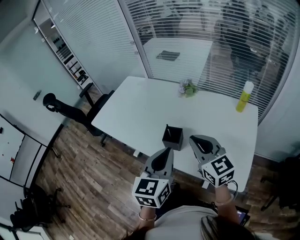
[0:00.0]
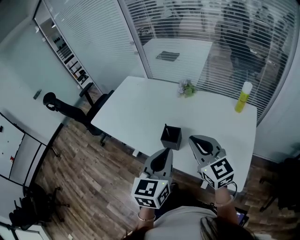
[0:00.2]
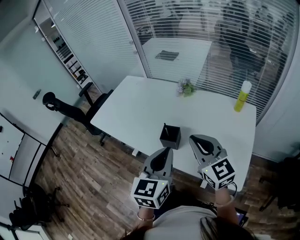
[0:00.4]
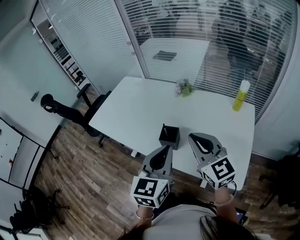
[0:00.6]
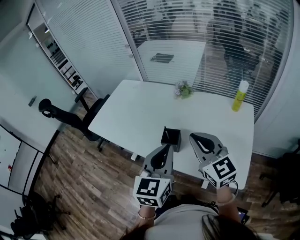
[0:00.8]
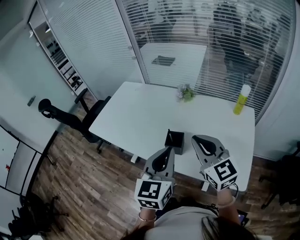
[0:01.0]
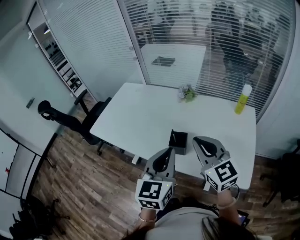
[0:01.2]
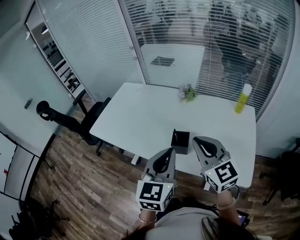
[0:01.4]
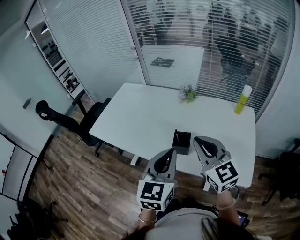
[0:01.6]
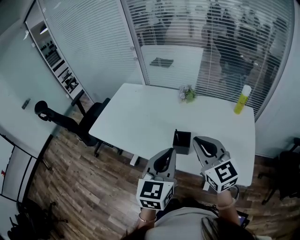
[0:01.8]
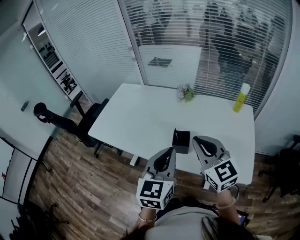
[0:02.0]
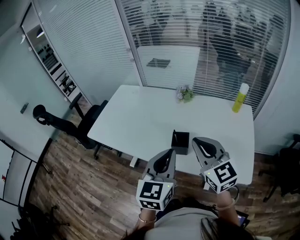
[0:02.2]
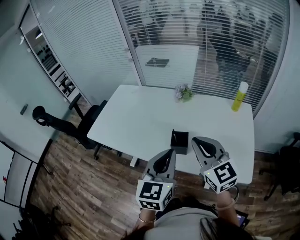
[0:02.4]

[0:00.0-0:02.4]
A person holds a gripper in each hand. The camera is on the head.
0:00.0 to 0:01.2: The right gripper moves some 5 cm.
0:01.2 to 0:02.4: There are only small adjustments of the grippers.

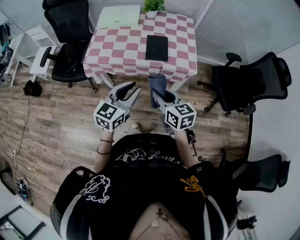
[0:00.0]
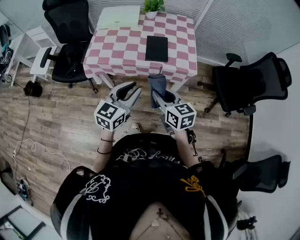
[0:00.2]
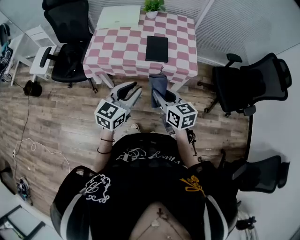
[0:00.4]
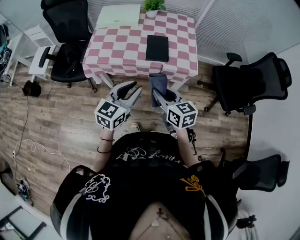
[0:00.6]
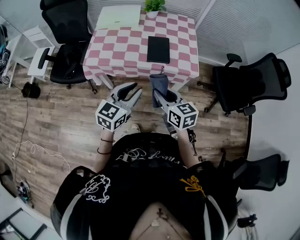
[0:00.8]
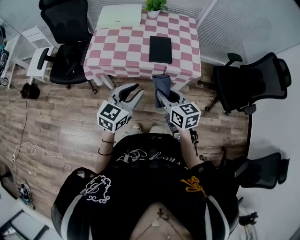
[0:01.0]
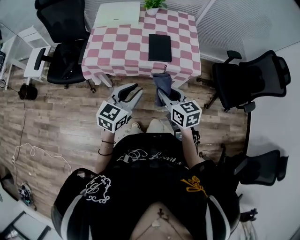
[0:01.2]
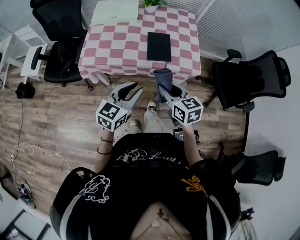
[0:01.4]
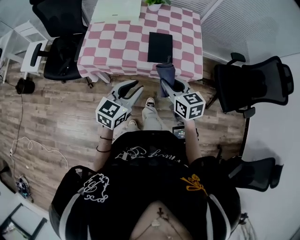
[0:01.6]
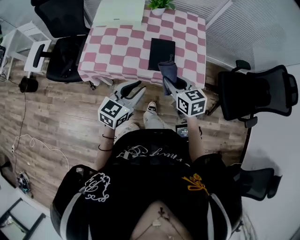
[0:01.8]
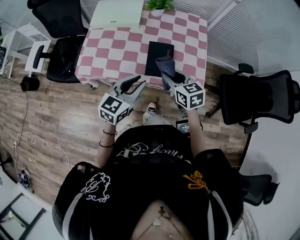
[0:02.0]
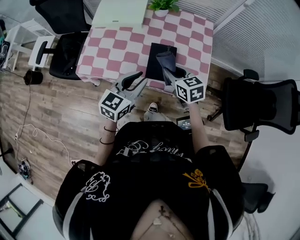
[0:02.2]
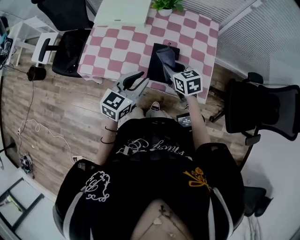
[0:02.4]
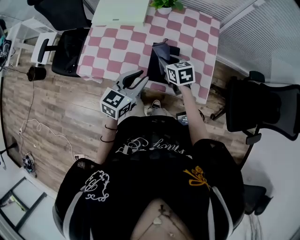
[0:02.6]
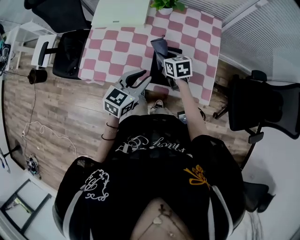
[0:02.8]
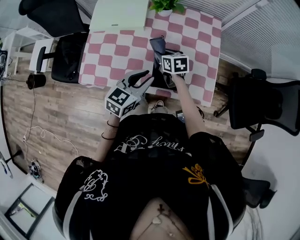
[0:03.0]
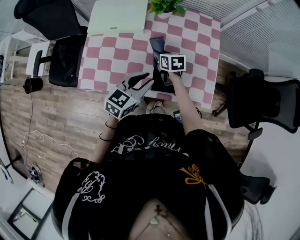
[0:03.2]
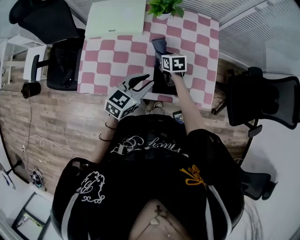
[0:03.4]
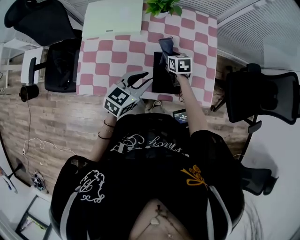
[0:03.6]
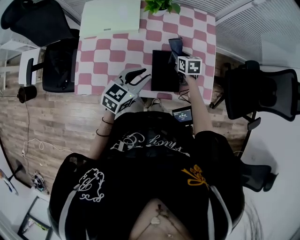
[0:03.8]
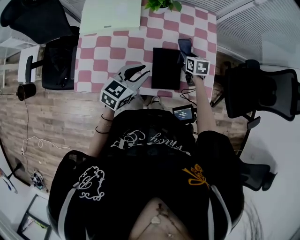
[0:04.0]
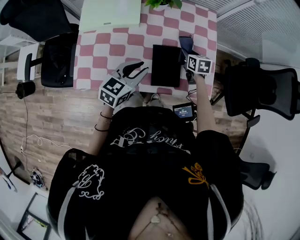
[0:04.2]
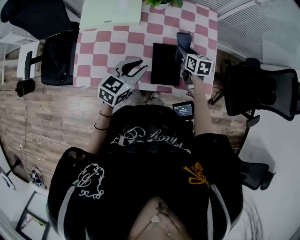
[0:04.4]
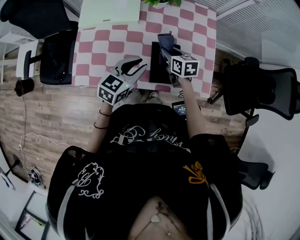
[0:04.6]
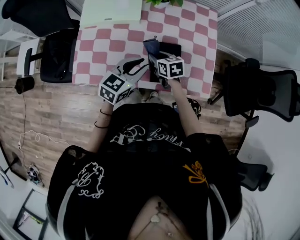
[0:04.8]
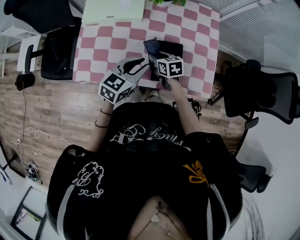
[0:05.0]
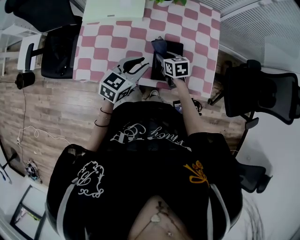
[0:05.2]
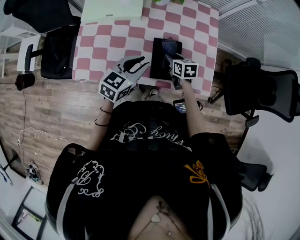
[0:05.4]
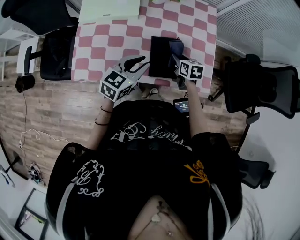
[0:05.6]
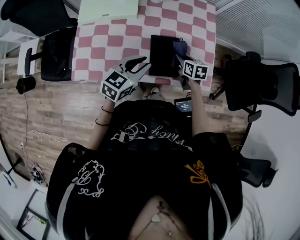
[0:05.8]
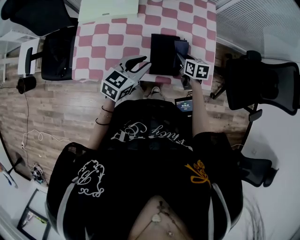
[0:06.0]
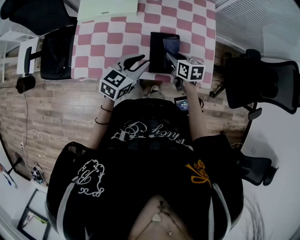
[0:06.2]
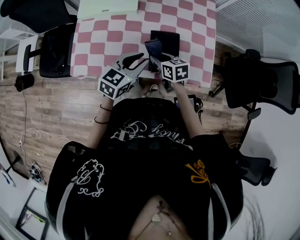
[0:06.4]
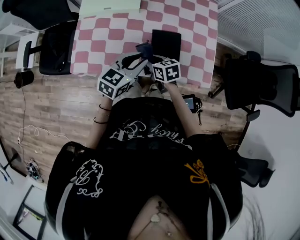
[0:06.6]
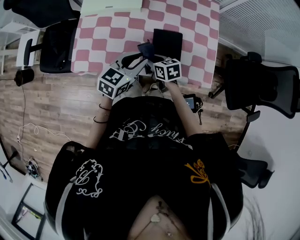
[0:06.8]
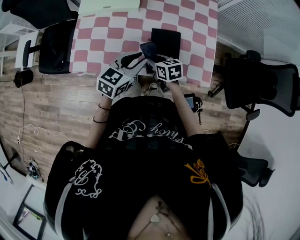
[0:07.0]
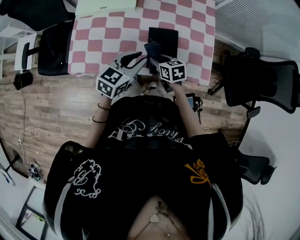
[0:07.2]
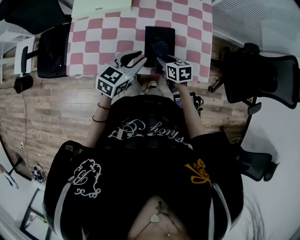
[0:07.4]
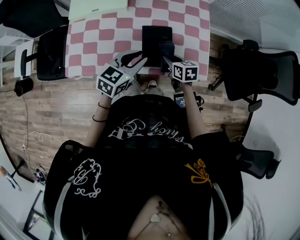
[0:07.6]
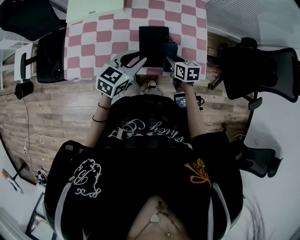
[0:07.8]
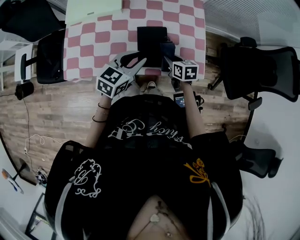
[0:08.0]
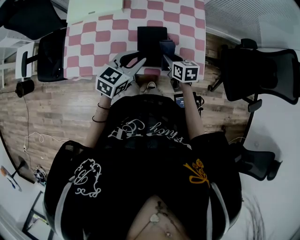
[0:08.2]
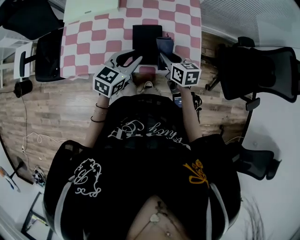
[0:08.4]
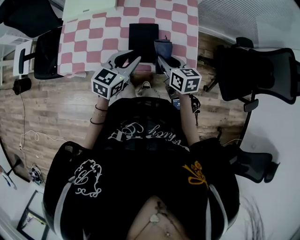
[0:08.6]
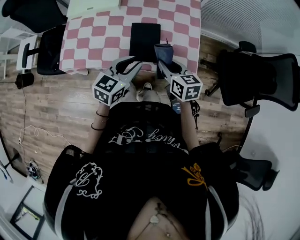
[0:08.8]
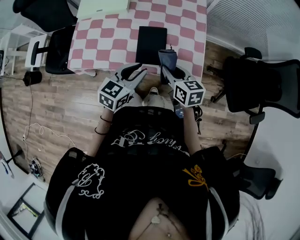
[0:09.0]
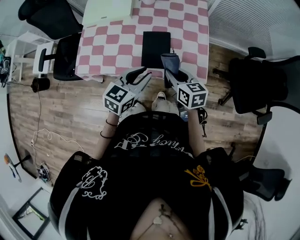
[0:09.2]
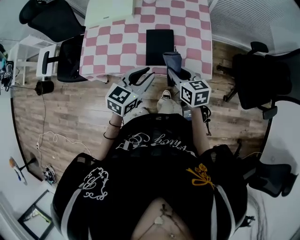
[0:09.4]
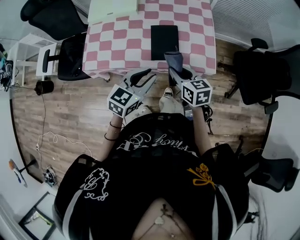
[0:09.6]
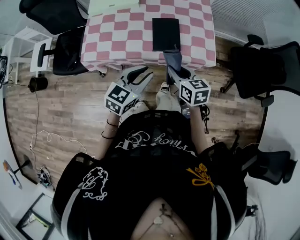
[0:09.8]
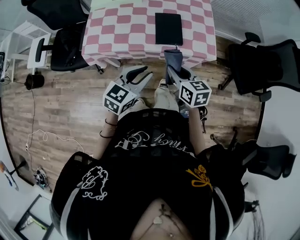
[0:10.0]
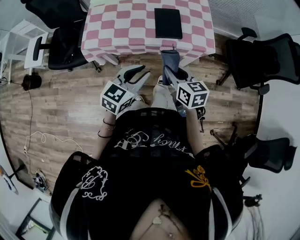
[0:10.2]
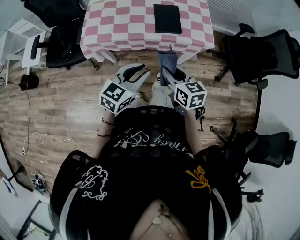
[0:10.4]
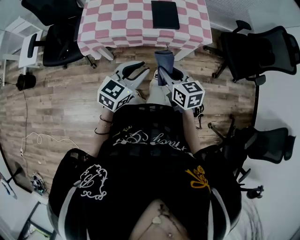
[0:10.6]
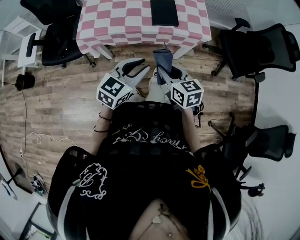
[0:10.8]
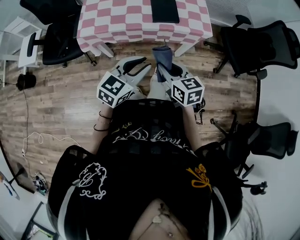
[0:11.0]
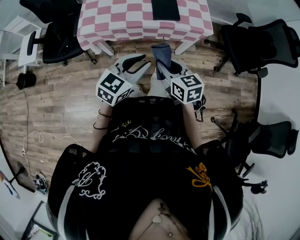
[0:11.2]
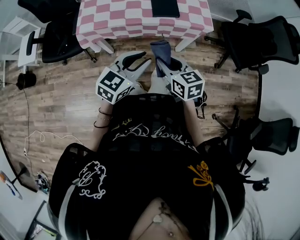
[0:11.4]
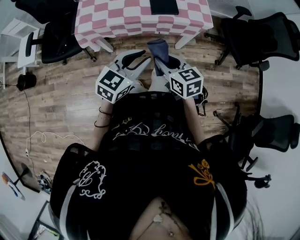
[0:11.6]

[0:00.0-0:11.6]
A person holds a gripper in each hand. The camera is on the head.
0:00.0 to 0:01.4: The grippers both shift forward by roughly 5 cm.
0:01.4 to 0:02.8: The grippers both shift forward by some 30 cm.
0:02.8 to 0:04.4: The right gripper goes roughly 10 cm to the right and forward, and changes its angle by some 20 degrees. The left gripper travels forward and to the left by approximately 10 cm.
0:04.4 to 0:05.8: The right gripper shifts approximately 10 cm backward and downward, and moves about 15 cm to the left and comes back.
0:05.8 to 0:07.2: The right gripper travels to the left and backward by about 15 cm.
0:07.2 to 0:08.8: The left gripper shifts some 10 cm to the right. The right gripper moves to the right and upward, approximately 15 cm.
0:08.8 to 0:10.2: Both grippers travel together backward and to the left, approximately 25 cm.
0:10.2 to 0:11.6: The two grippers go about 10 cm backward.

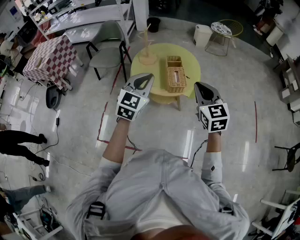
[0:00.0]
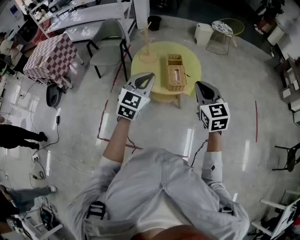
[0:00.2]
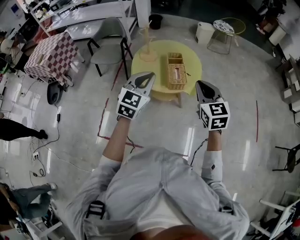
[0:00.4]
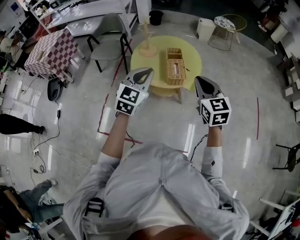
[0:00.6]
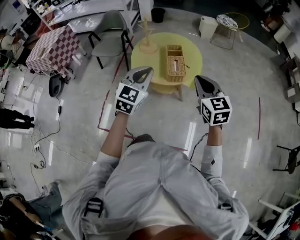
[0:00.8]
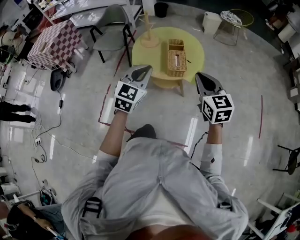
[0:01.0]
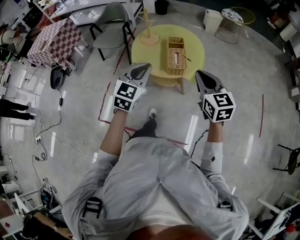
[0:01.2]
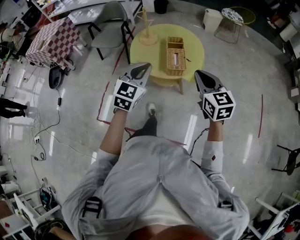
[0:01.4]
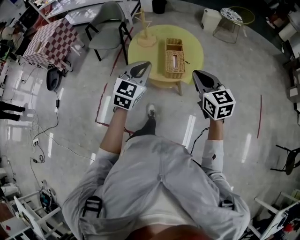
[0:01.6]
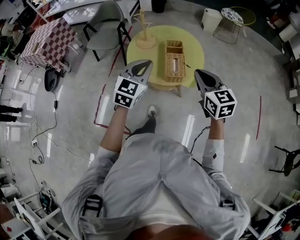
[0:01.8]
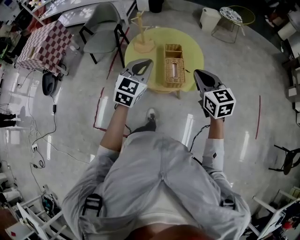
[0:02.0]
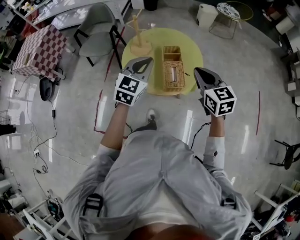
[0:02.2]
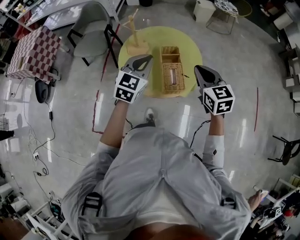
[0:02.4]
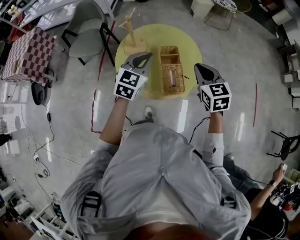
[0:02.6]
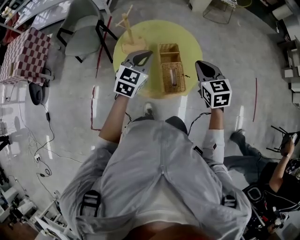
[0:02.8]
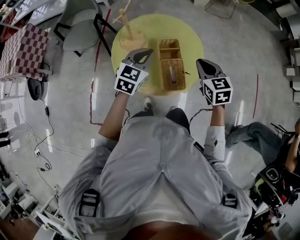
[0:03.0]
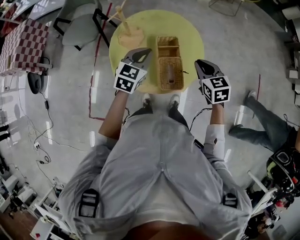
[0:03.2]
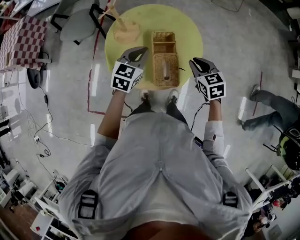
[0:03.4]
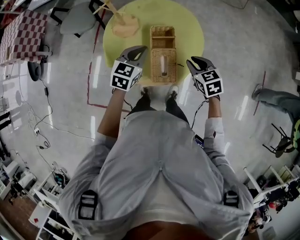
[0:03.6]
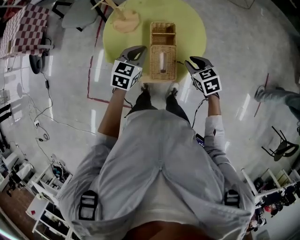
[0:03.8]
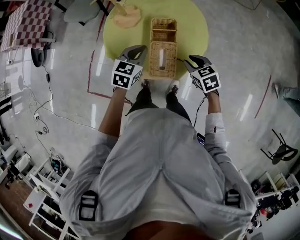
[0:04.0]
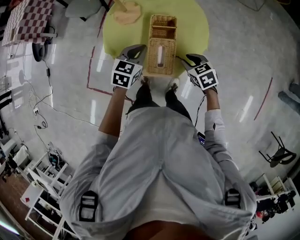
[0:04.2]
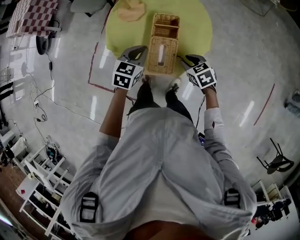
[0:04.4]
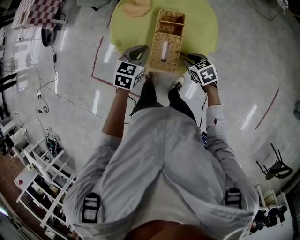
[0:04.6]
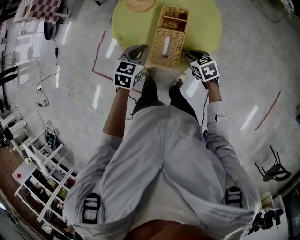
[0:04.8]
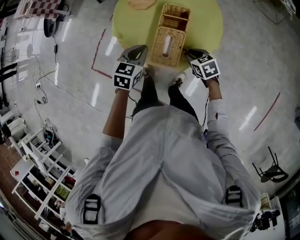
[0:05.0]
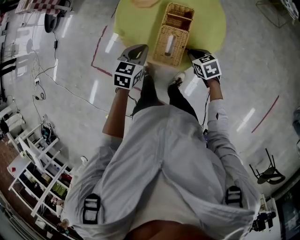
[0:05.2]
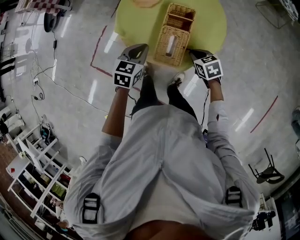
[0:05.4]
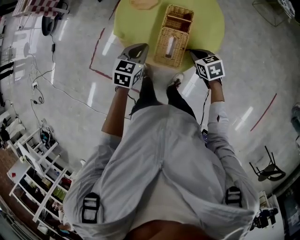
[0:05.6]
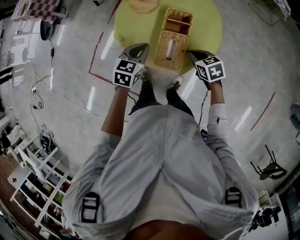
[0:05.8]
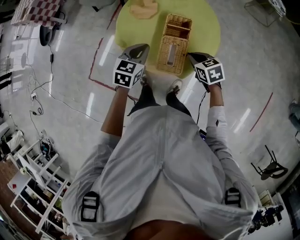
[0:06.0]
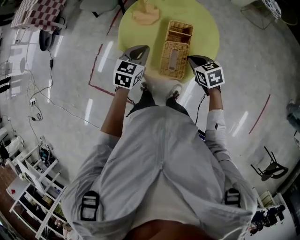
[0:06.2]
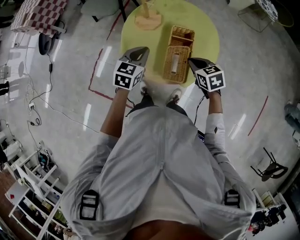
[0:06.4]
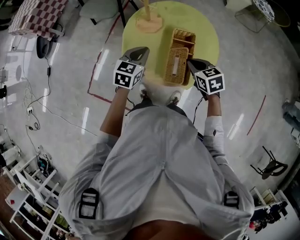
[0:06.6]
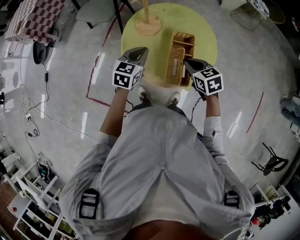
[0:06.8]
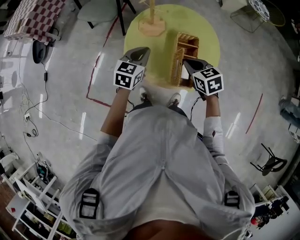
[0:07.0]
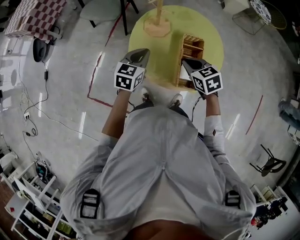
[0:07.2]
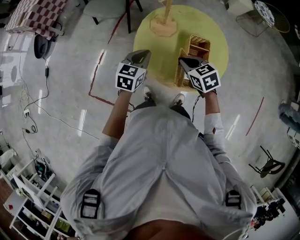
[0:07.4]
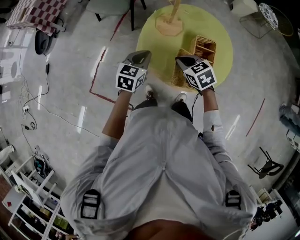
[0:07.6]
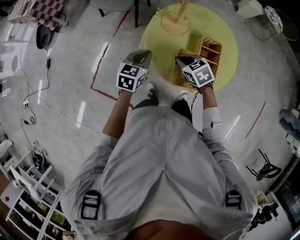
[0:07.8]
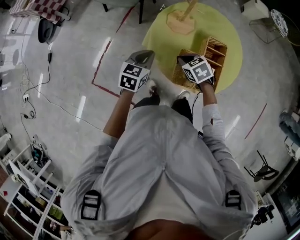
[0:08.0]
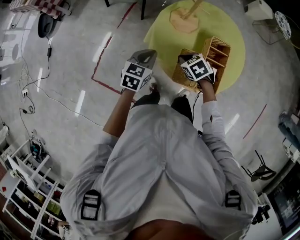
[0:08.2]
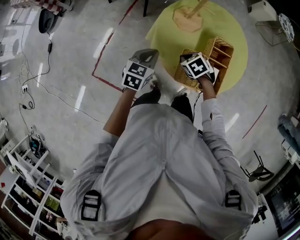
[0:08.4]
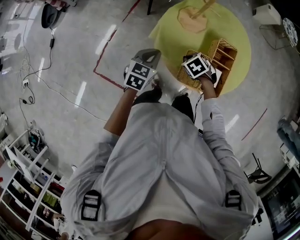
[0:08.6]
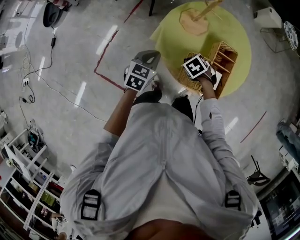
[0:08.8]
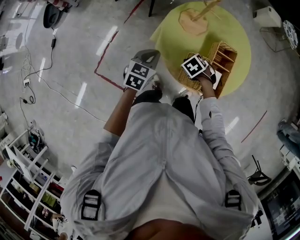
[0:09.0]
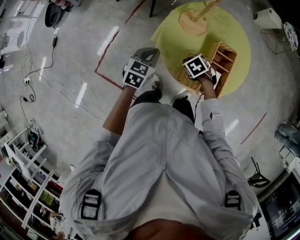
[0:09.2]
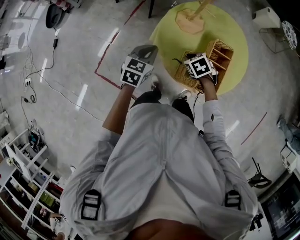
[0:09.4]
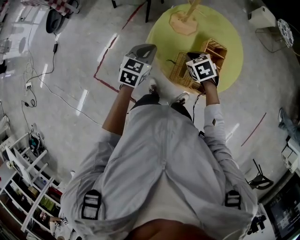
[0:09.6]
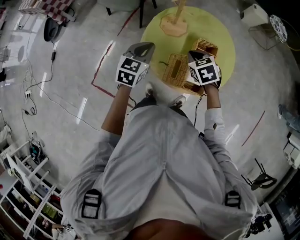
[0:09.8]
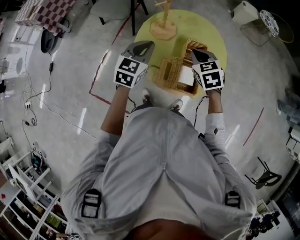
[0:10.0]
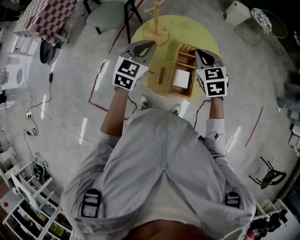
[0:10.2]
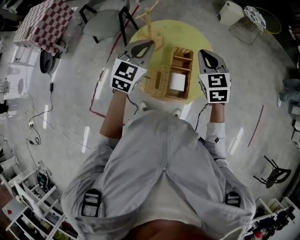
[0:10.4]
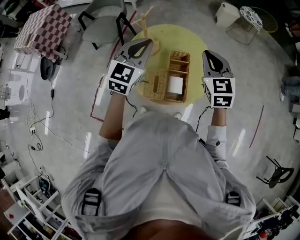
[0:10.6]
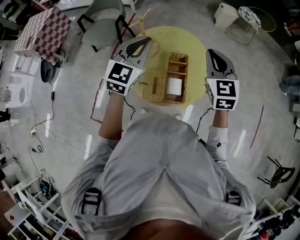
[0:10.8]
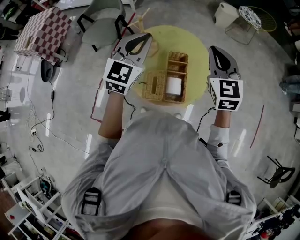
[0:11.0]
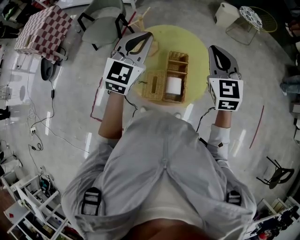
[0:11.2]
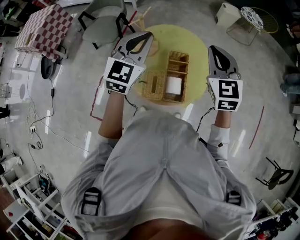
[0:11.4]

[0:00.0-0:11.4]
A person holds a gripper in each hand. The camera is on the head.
0:00.0 to 0:01.4: The left gripper moves about 5 cm; the right gripper shifts by some 5 cm.
0:01.4 to 0:02.8: The grippers both shift forward by about 30 cm.
0:02.8 to 0:04.2: The two grippers go approximately 20 cm downward. The left gripper swivels roughly 30 degrees, while the right gripper swivels about 40 degrees, and opens up.
0:04.2 to 0:05.6: The right gripper closes; the left gripper heads to the left, covering approximately 5 cm.
0:05.6 to 0:07.2: The right gripper heads to the left, upward and forward, covering approximately 20 cm. Meanwhile the left gripper shifts about 15 cm to the left, forward and upward.
0:07.2 to 0:08.6: The left gripper shifts about 10 cm downward and to the left, while the right gripper travels downward and to the left by approximately 20 cm, and changes its angle by some 30 degrees.
0:08.6 to 0:10.0: Both grippers move upward, approximately 20 cm. The right gripper swivels about 30 degrees.
0:10.0 to 0:11.4: The grippers both shift upward and to the right by roughly 25 cm. The right gripper tips its fingers upward by about 30 degrees, while the left gripper swivels some 20 degrees.
